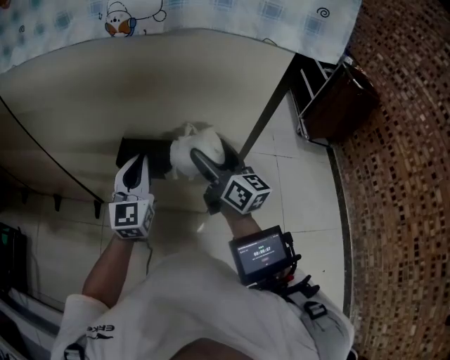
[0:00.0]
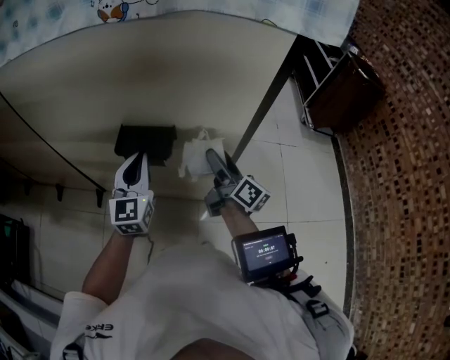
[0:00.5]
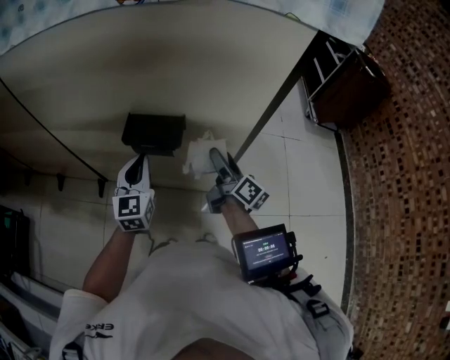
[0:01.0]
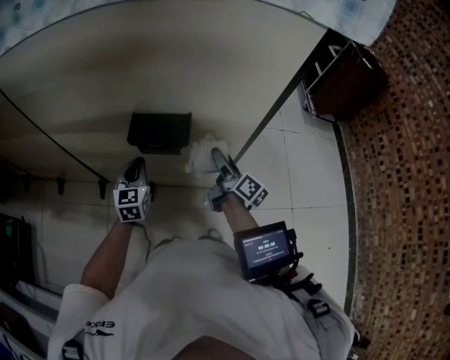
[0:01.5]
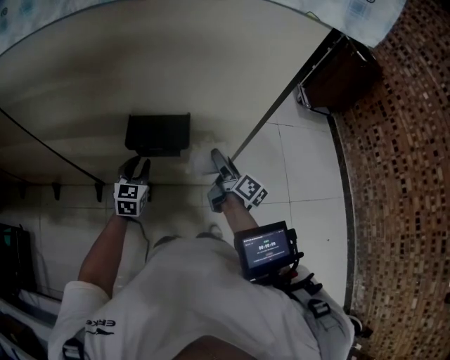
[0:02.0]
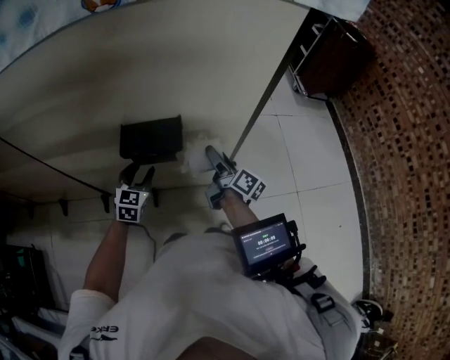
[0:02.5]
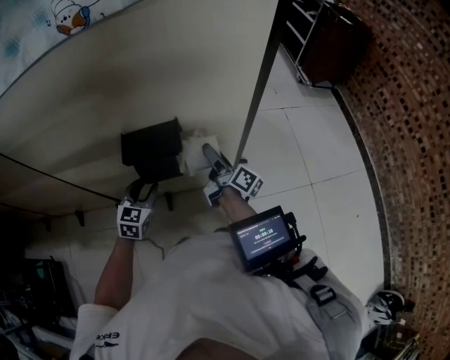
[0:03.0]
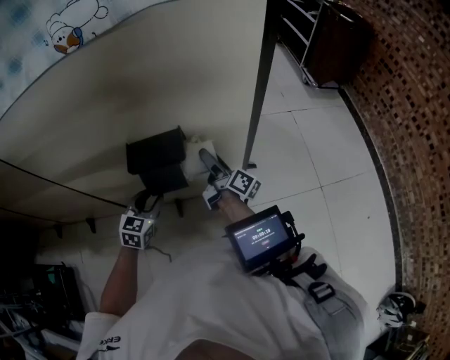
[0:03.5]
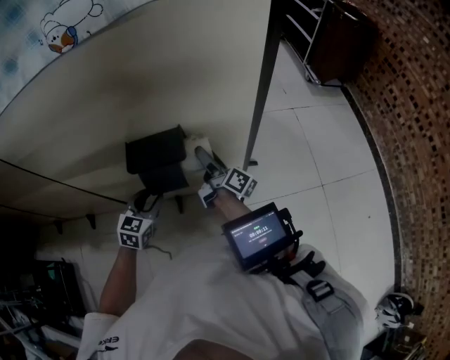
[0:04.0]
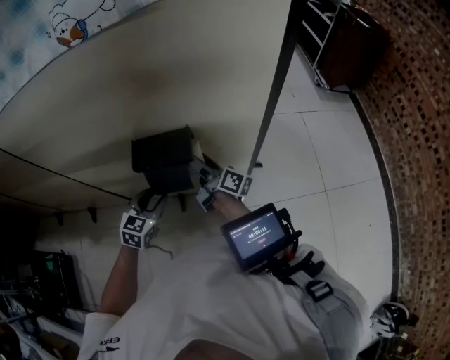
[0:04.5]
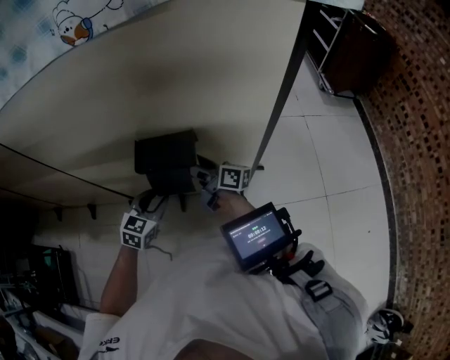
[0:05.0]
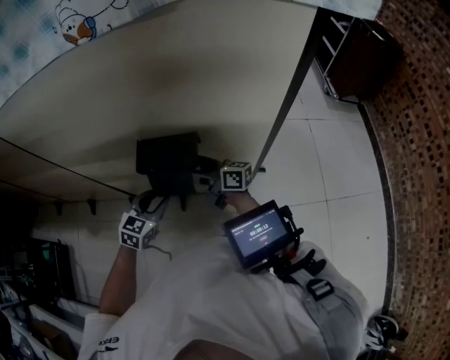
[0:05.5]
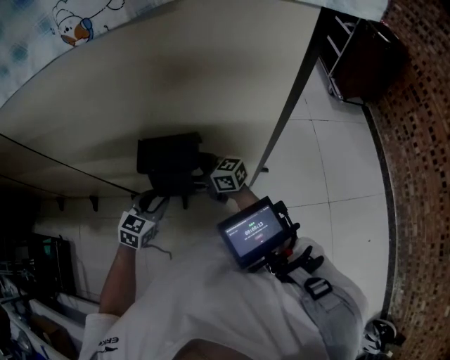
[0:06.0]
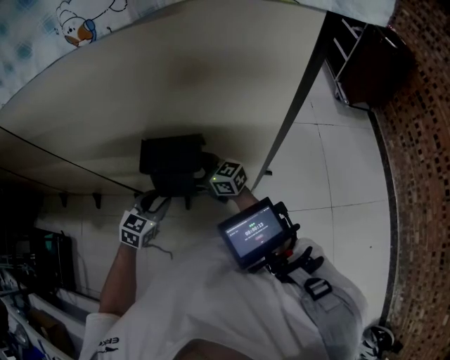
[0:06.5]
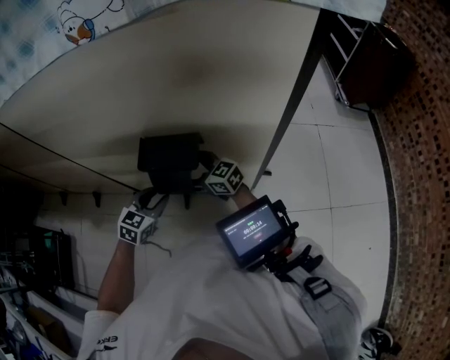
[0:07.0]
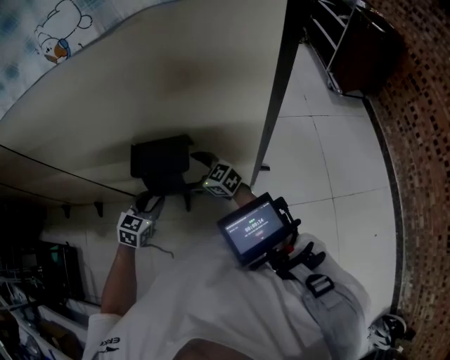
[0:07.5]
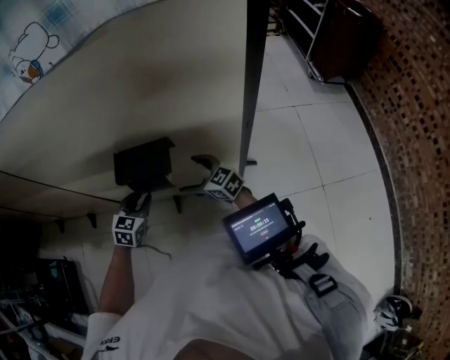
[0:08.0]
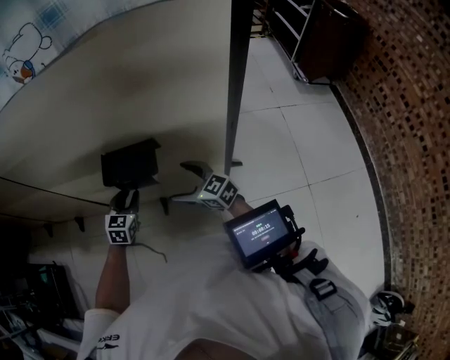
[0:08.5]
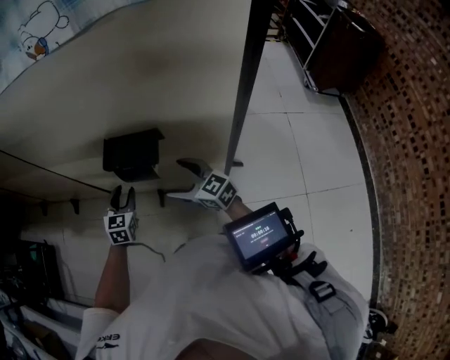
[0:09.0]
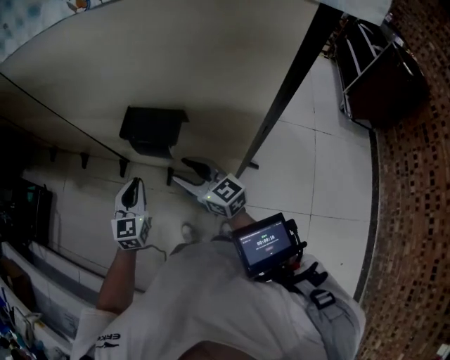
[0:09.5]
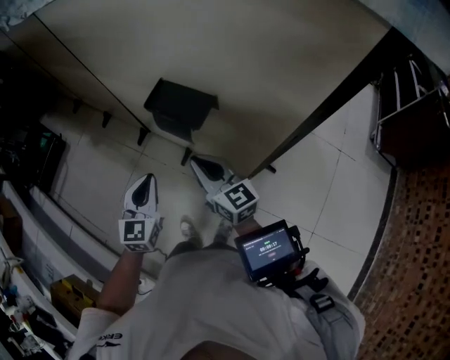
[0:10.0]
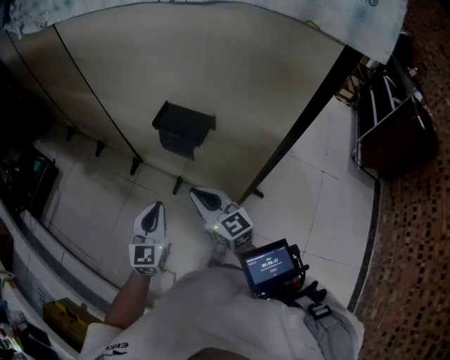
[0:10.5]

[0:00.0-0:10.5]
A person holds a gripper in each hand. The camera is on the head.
0:00.0 to 0:02.0: The two grippers go approximately 20 cm downward. The left gripper turns by roughly 30 degrees, while the right gripper swivels roughly 40 degrees.
0:02.0 to 0:04.0: The left gripper heads backward, covering approximately 5 cm.
0:04.0 to 0:06.5: The right gripper changes place by roughly 15 cm, and rotates about 70 degrees.
0:06.5 to 0:08.5: The left gripper ends up approximately 5 cm from where it was; the right gripper is displaced backward and to the right by roughly 10 cm.
0:08.5 to 0:10.5: The right gripper goes some 15 cm backward, upward and to the left, and closes up. Meanwhile the left gripper moves backward and upward, about 25 cm, rotates some 40 degrees, and closes its fingers.

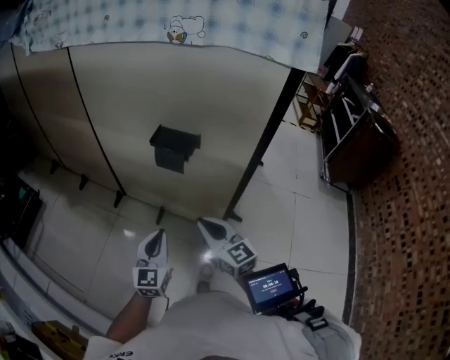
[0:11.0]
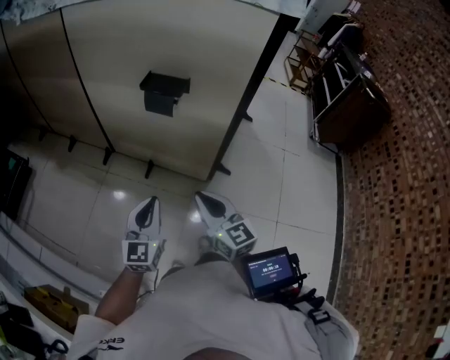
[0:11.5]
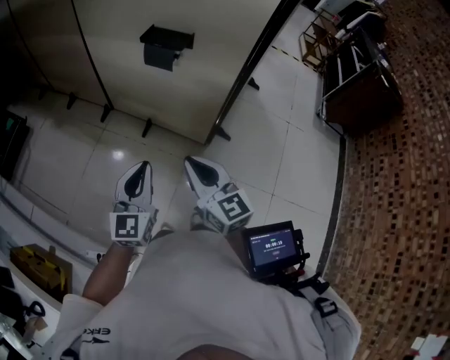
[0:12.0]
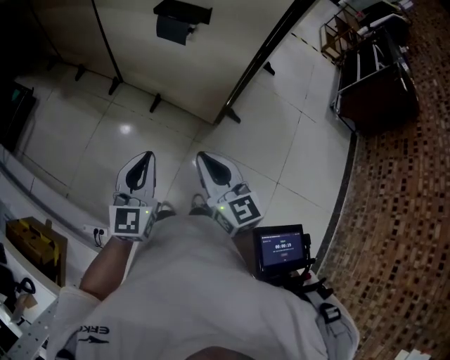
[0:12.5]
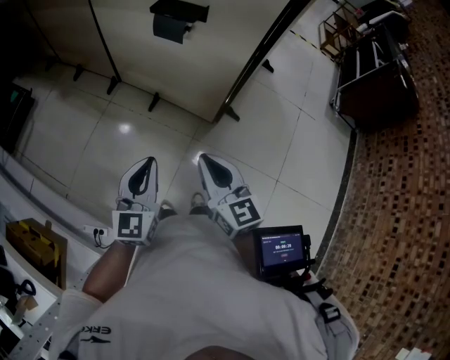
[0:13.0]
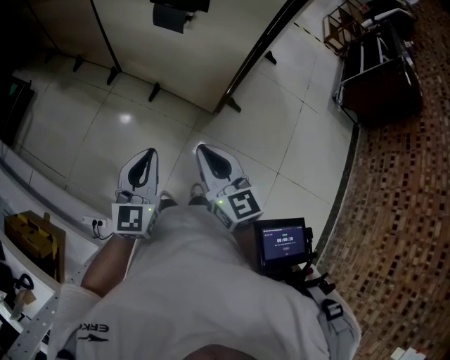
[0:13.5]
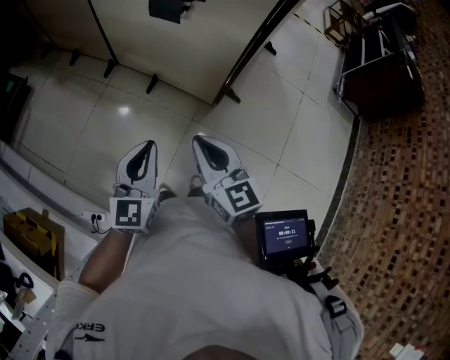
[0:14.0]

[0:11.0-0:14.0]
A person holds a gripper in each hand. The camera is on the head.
0:11.0 to 0:12.5: The grippers both shift backward by roughly 20 cm.
0:12.5 to 0:14.0: The grippers stay close to where they were, moving slightly.

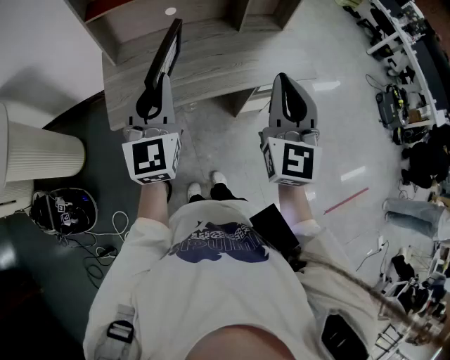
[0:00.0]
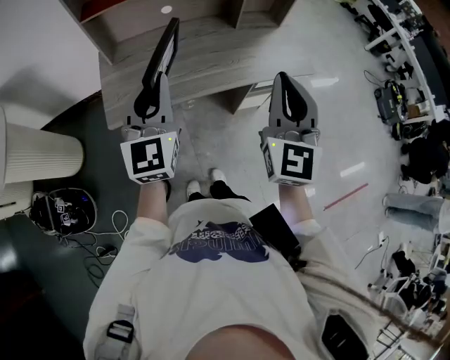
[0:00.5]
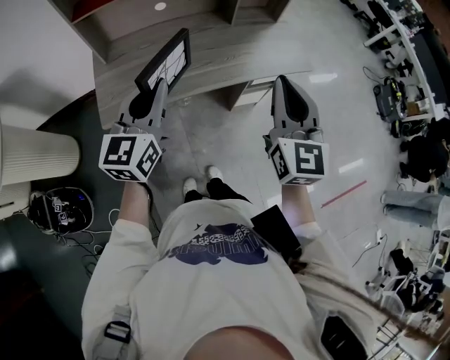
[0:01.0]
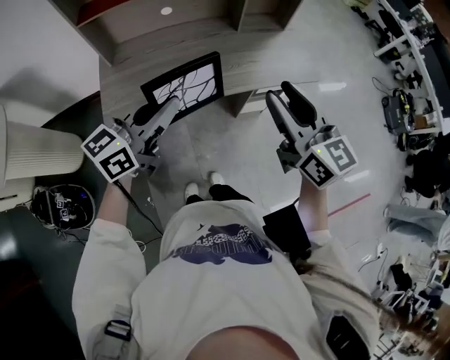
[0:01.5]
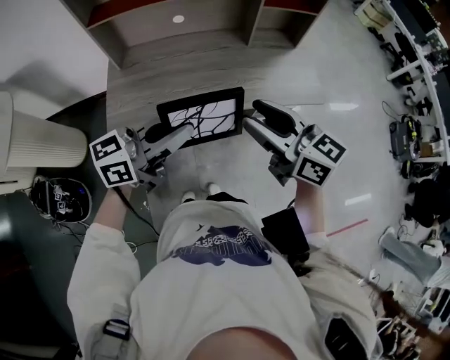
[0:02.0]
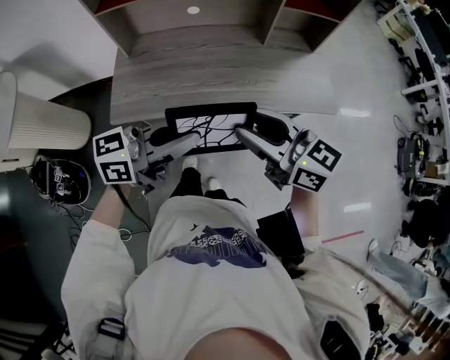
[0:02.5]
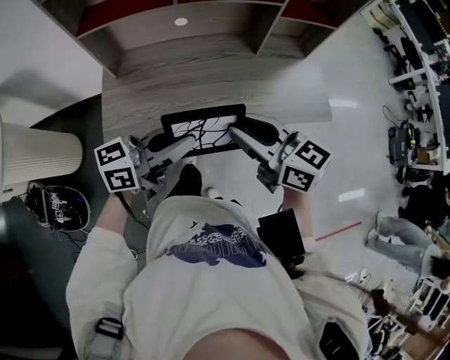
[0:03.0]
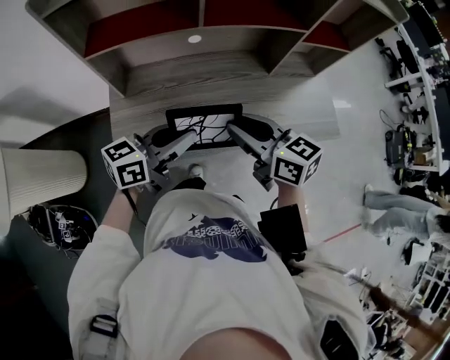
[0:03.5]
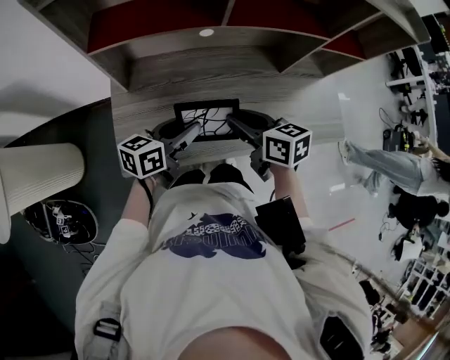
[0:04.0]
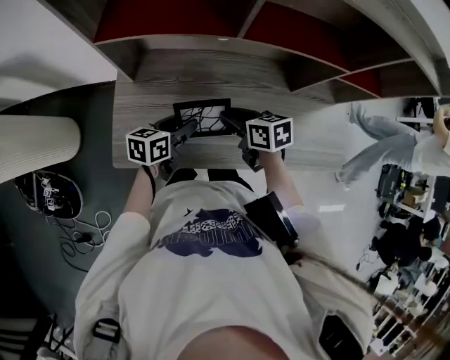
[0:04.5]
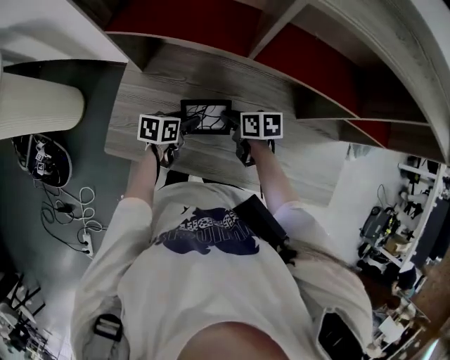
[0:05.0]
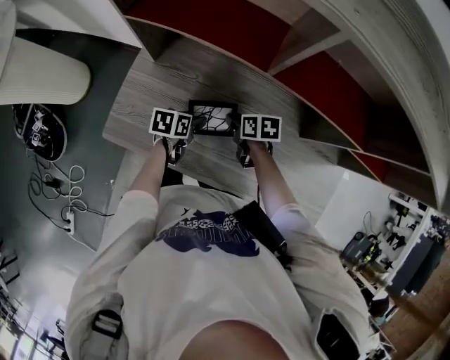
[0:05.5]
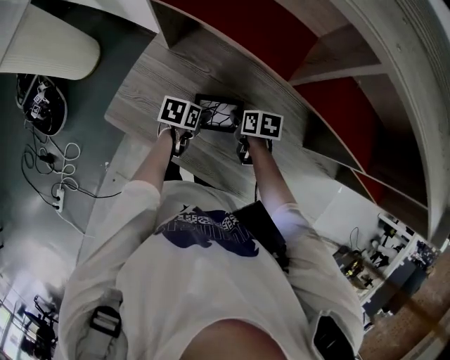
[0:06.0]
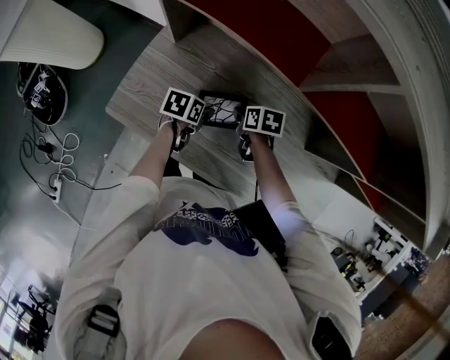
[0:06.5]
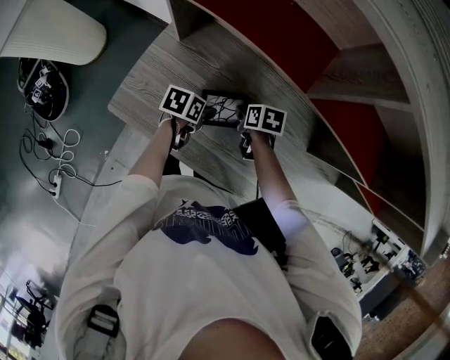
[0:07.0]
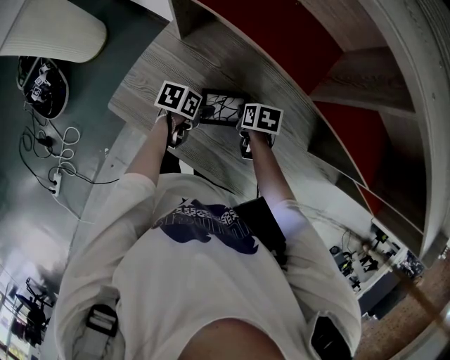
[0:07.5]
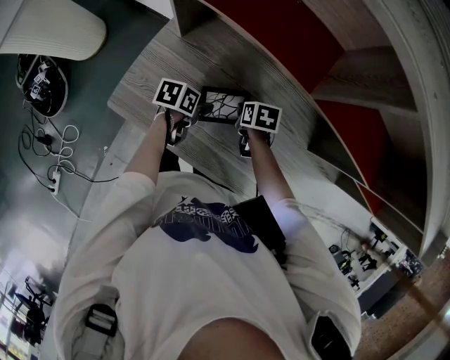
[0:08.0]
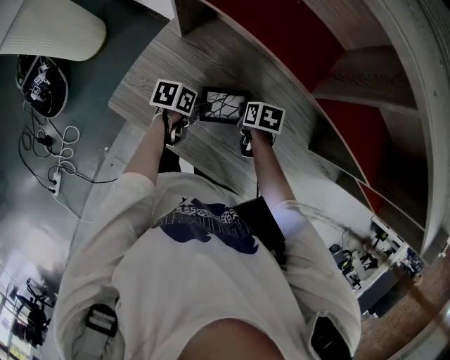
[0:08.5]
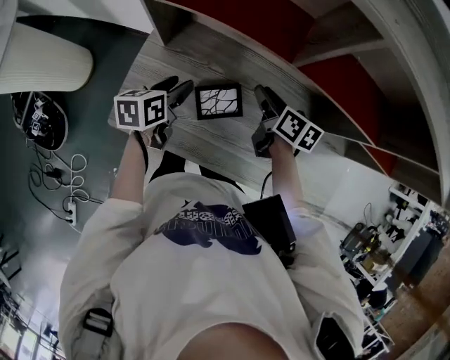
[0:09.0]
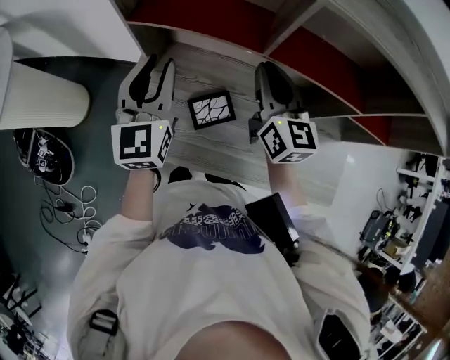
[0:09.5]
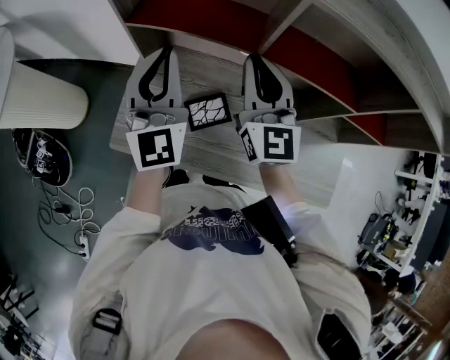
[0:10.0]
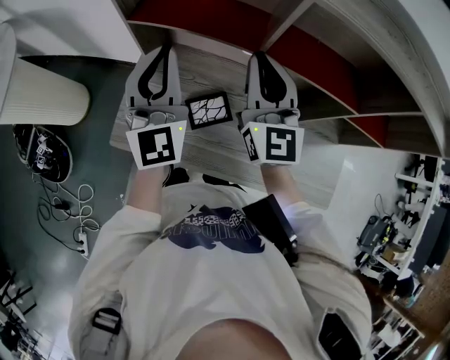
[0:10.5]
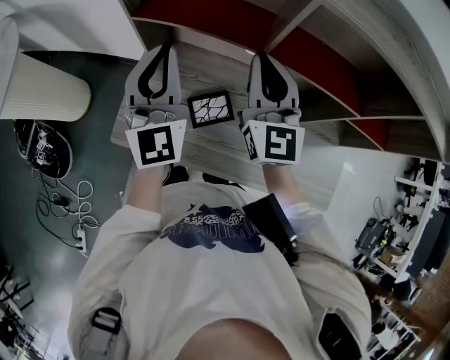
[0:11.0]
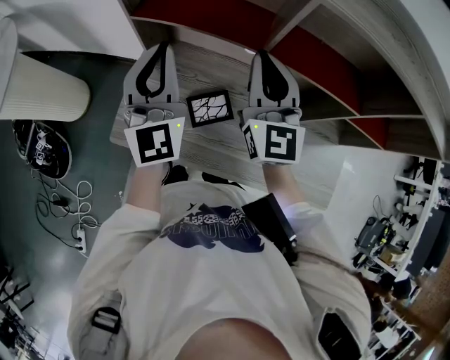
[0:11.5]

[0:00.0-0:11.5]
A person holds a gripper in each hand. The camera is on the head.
0:00.0 to 0:02.0: The left gripper shifts approximately 15 cm to the right, and rotates roughly 60 degrees; the right gripper goes to the right and returns, about 10 cm each way, rotates some 60 degrees, and opens.
0:02.0 to 0:04.0: The left gripper ends up roughly 40 cm from where it was, swivels about 30 degrees, and opens up. The right gripper shifts by approximately 40 cm, changes its angle by some 30 degrees, and closes.
0:04.0 to 0:06.0: Both grippers travel together downward, about 20 cm. The right gripper rotates roughly 40 degrees; the left gripper angles its fingers downward, by some 40 degrees.
0:06.0 to 0:07.5: The grippers stay close to where they were, moving slightly.
0:07.5 to 0:09.5: The grippers both shift upward by about 35 cm. The right gripper tips its fingers upward by roughly 60 degrees. Meanwhile the left gripper tilts its fingers some 40 degrees upward.
0:09.5 to 0:11.5: The two grippers go some 5 cm upward. The left gripper closes up. Meanwhile the right gripper turns by roughly 20 degrees.

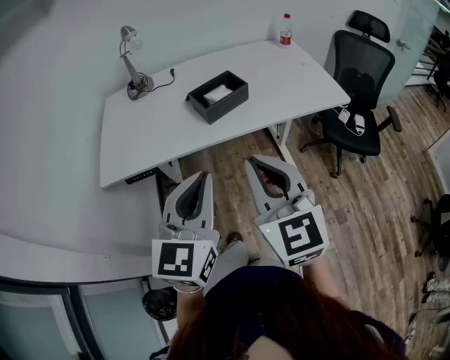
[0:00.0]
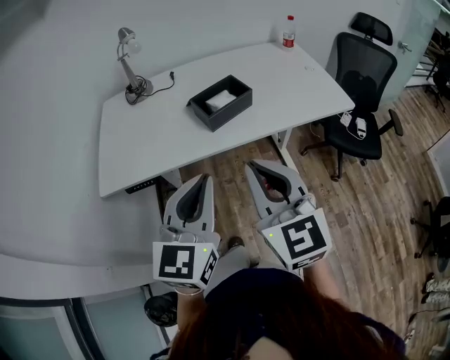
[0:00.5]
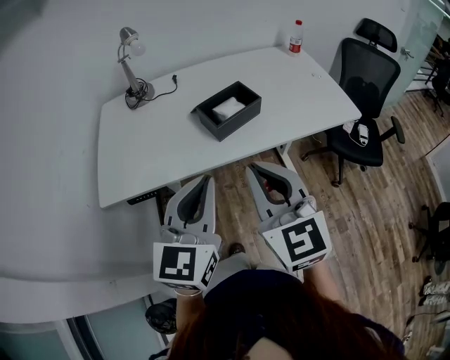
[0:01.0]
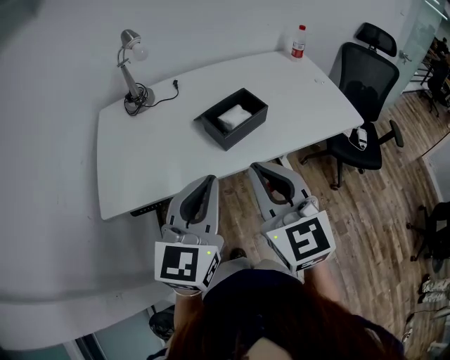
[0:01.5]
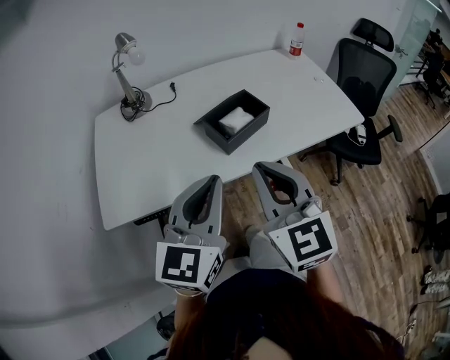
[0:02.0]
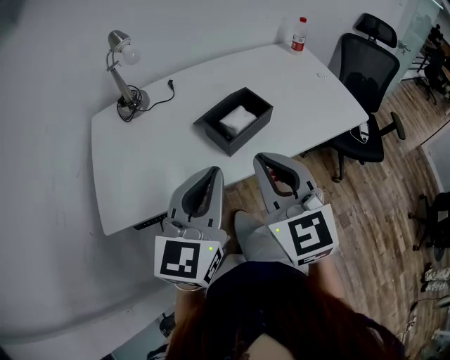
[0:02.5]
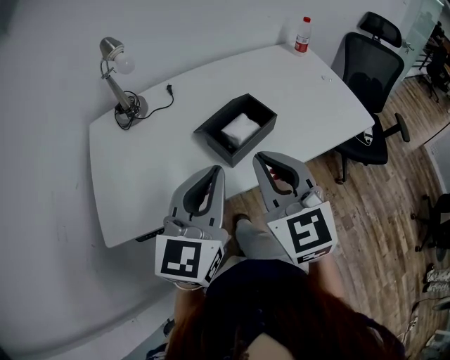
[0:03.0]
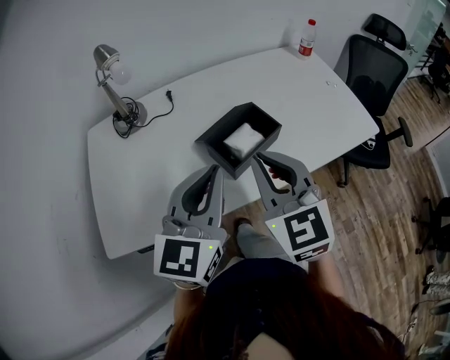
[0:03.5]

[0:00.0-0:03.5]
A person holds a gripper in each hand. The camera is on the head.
0:00.0 to 0:02.0: The two grippers go roughly 15 cm forward and to the left.
0:02.0 to 0:03.5: The two grippers go roughly 15 cm forward.
